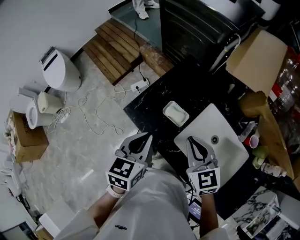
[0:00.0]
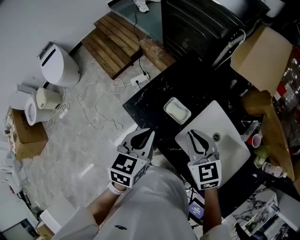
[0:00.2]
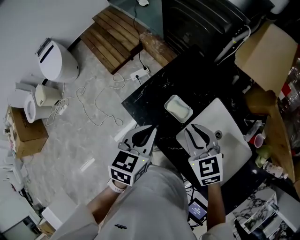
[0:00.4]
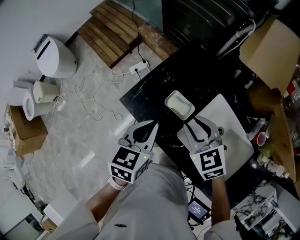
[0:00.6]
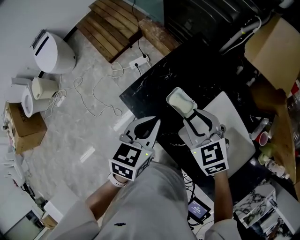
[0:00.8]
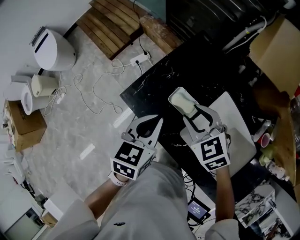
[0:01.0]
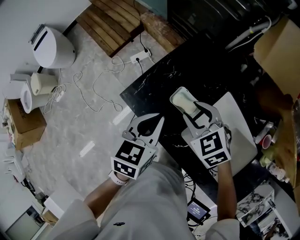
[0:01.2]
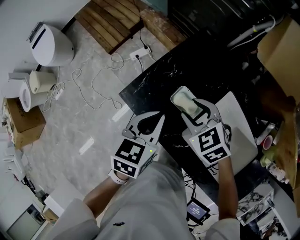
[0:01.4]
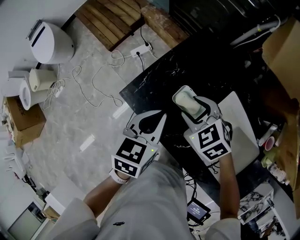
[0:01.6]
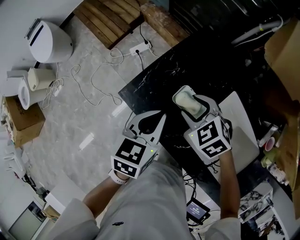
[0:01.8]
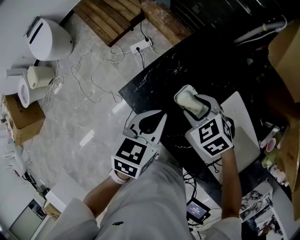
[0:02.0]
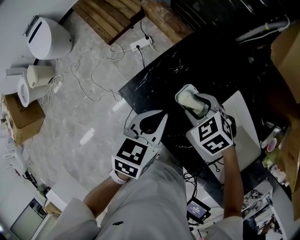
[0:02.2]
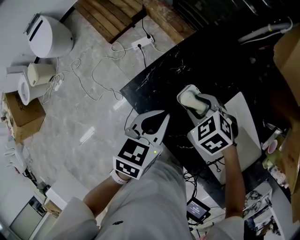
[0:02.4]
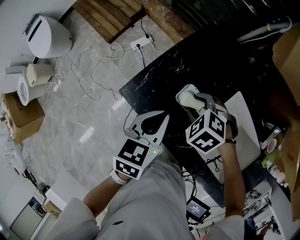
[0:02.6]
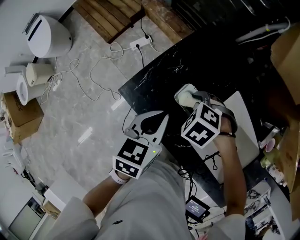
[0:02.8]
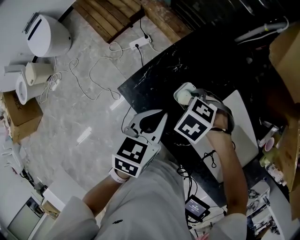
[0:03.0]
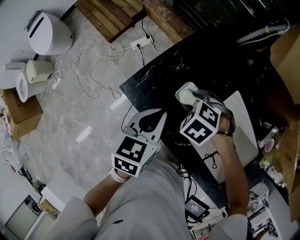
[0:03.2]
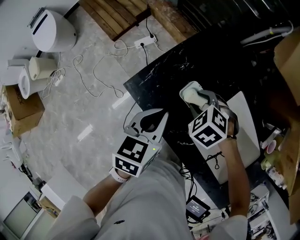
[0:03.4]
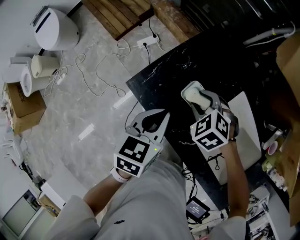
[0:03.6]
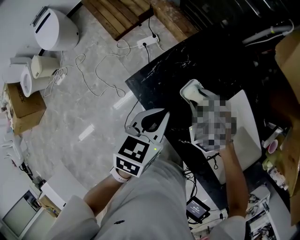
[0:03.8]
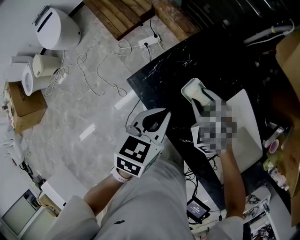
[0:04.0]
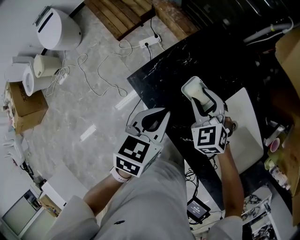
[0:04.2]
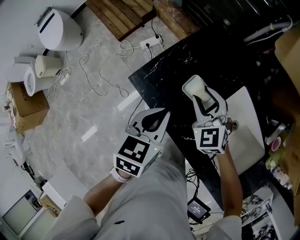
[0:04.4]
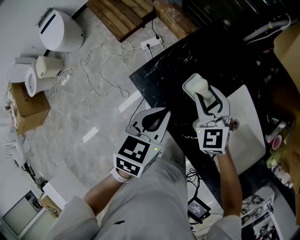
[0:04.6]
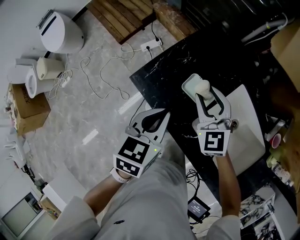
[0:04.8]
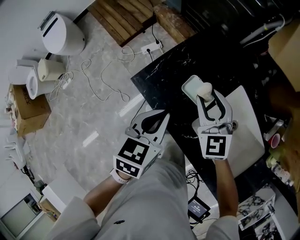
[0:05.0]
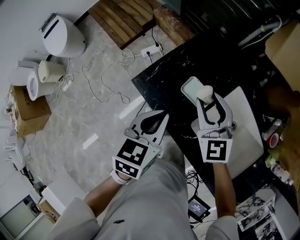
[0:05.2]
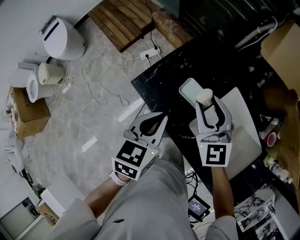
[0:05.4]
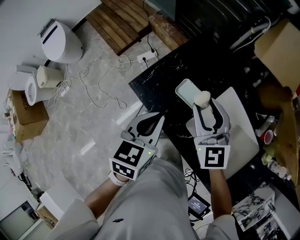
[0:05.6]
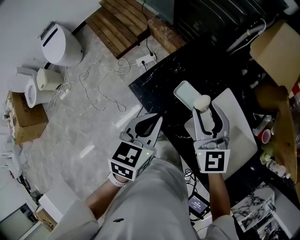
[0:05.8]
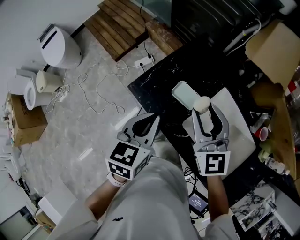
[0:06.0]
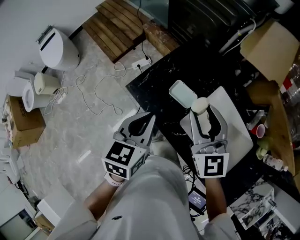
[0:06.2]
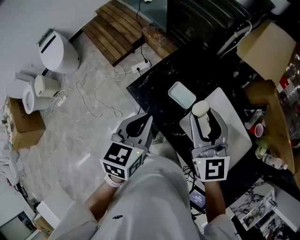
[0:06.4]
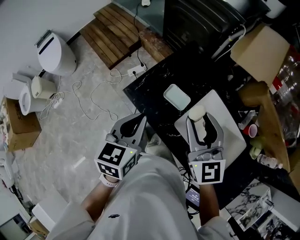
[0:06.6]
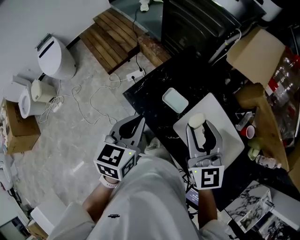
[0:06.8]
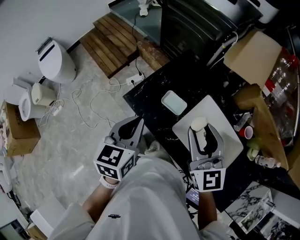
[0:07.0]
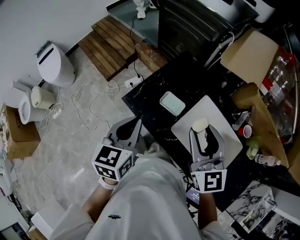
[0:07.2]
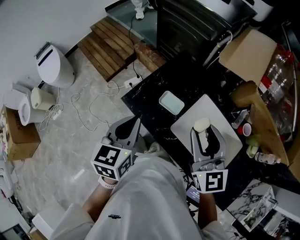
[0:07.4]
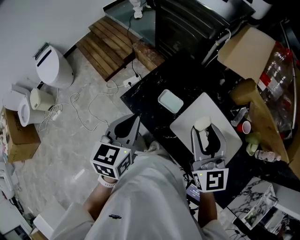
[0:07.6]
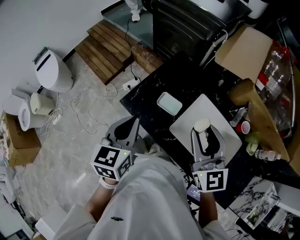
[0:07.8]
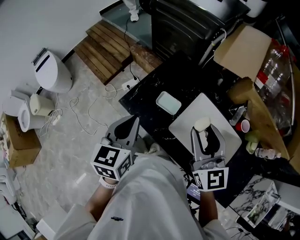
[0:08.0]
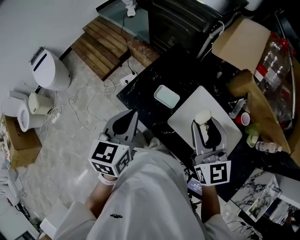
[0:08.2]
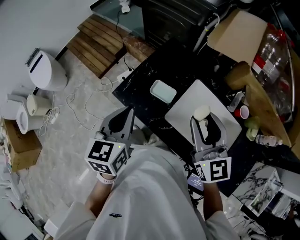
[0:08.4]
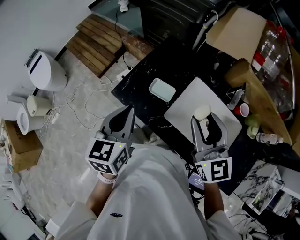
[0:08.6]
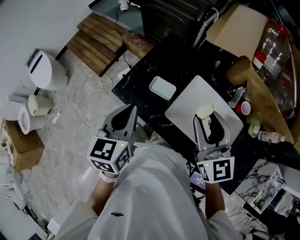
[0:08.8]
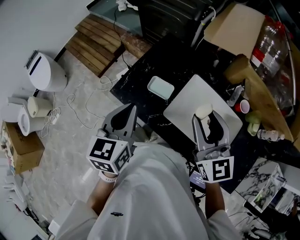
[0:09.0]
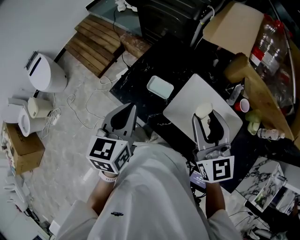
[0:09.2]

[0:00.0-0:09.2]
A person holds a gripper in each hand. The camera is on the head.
0:00.0 to 0:01.6: Both grippers move downward and forward, approximately 15 cm. The right gripper changes its angle by approximately 40 degrees, and opens its fingers.
0:01.6 to 0:03.0: The right gripper moves downward, roughly 5 cm, and tips its fingers downward by about 30 degrees.
0:03.0 to 0:04.6: The right gripper heads upward, covering some 10 cm, and tilts its fingers approximately 60 degrees upward.
0:04.6 to 0:06.2: The left gripper travels upward by roughly 10 cm. Meanwhile the right gripper is displaced upward by roughly 20 cm, and swivels some 30 degrees.
0:06.2 to 0:07.6: The left gripper shifts roughly 5 cm upward. The right gripper moves backward, upward and to the right, approximately 10 cm.
0:07.6 to 0:09.2: The grippers stay close to where they were, moving slightly.

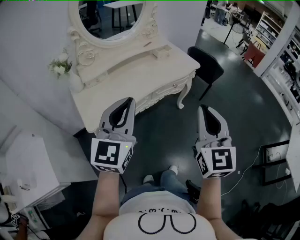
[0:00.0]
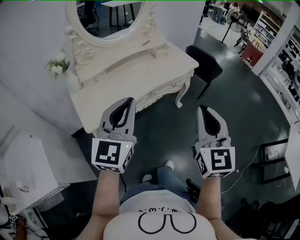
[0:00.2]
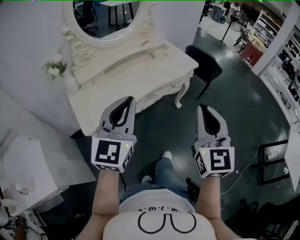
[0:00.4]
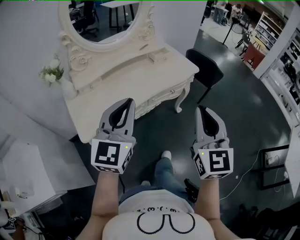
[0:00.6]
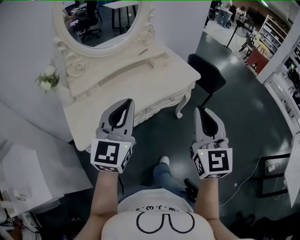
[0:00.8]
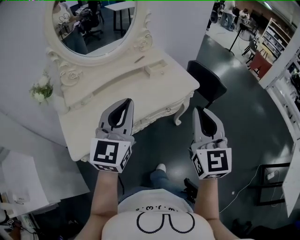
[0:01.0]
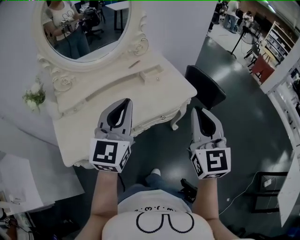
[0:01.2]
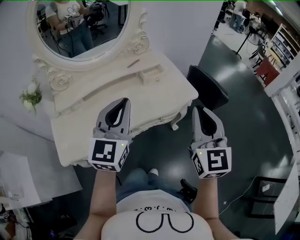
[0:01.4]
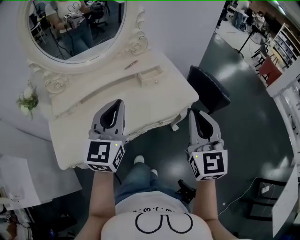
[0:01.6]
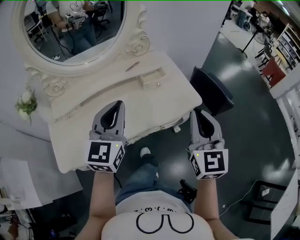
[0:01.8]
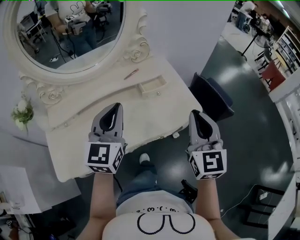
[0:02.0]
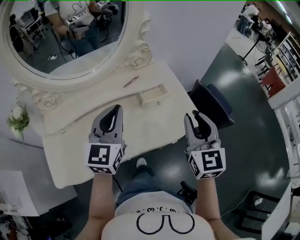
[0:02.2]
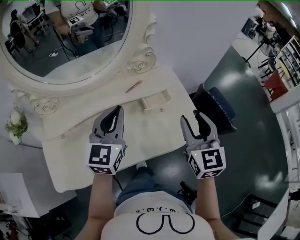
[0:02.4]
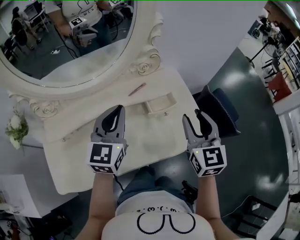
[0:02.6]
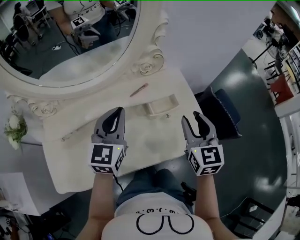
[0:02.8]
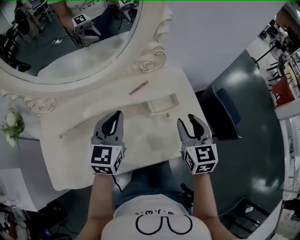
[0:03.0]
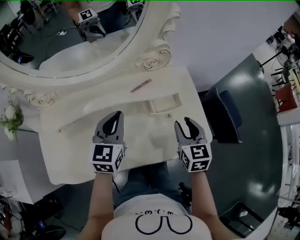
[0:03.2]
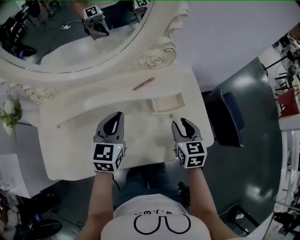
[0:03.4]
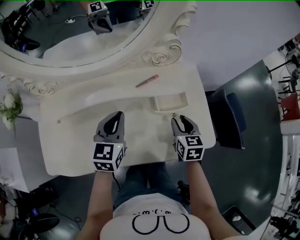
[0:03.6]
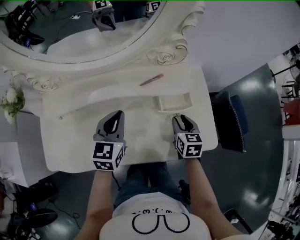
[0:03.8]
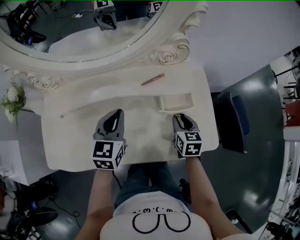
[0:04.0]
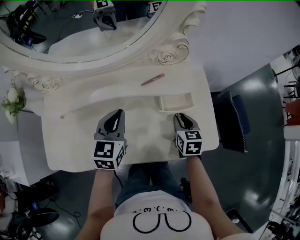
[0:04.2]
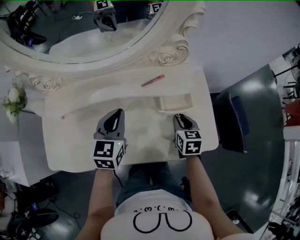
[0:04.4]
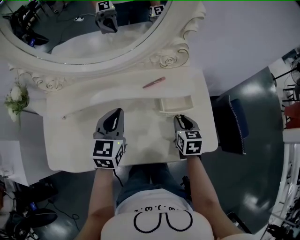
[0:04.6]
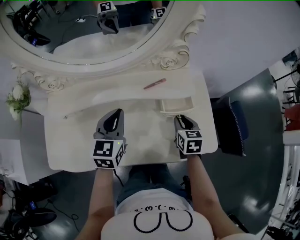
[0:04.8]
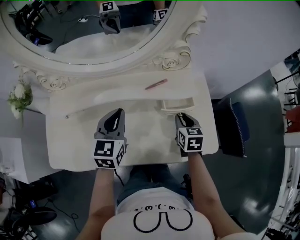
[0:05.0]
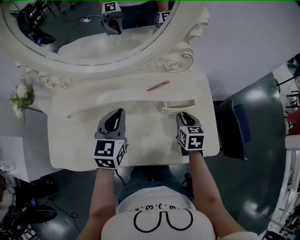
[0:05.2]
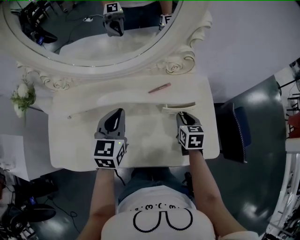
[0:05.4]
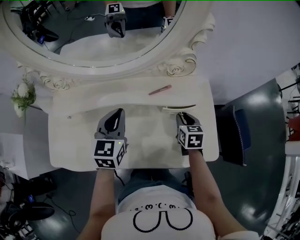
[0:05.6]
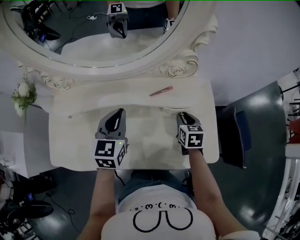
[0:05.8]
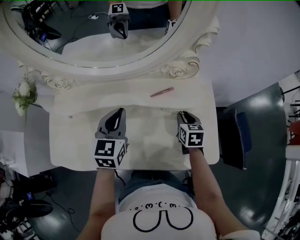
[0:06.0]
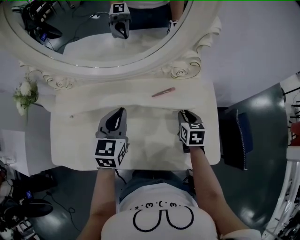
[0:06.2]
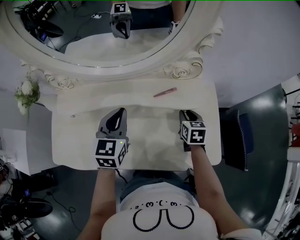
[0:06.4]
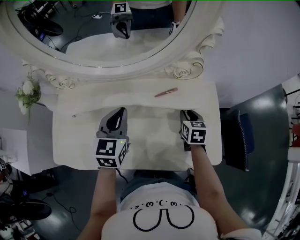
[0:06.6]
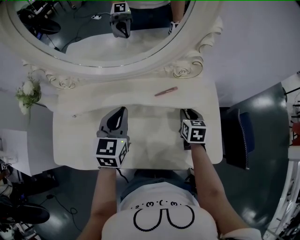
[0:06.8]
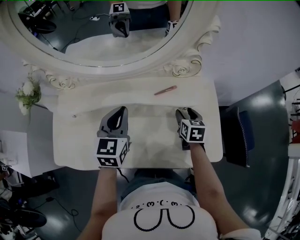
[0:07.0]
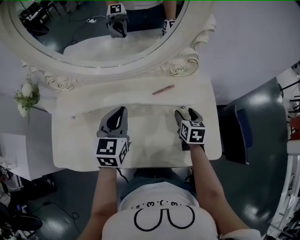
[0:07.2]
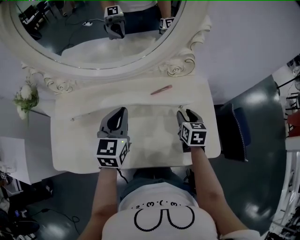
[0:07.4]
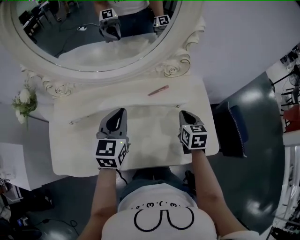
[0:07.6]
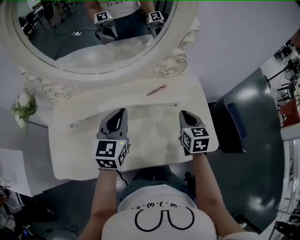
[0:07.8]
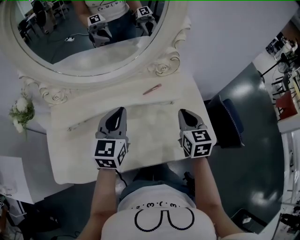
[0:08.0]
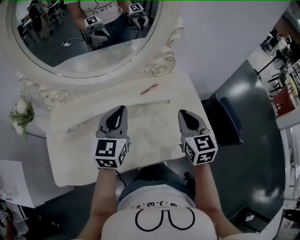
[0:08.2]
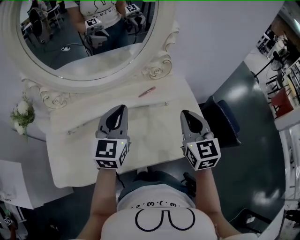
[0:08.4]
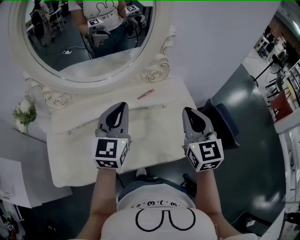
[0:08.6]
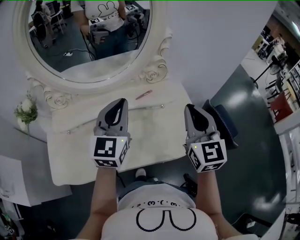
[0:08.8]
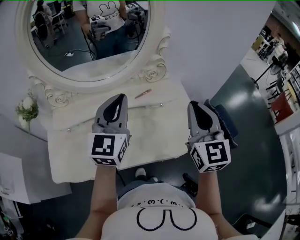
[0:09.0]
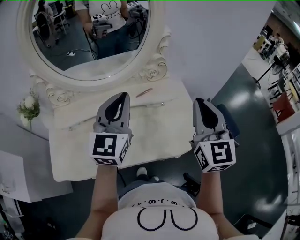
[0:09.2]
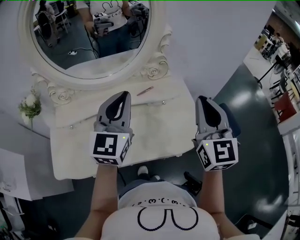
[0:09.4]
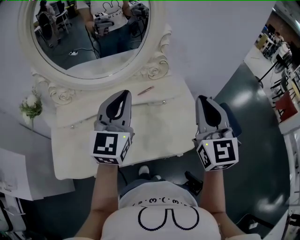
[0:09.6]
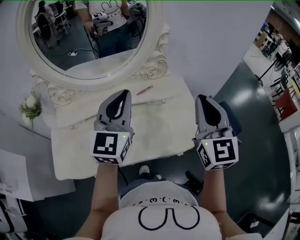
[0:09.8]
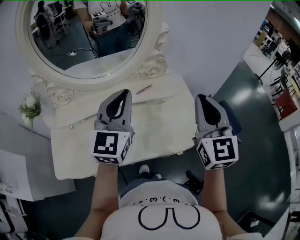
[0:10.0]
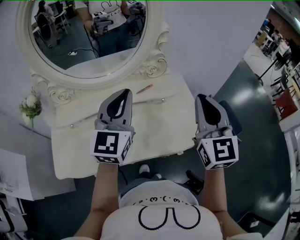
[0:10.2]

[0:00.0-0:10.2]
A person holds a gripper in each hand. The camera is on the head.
0:00.0 to 0:01.4: The two grippers go roughly 30 cm forward.
0:01.4 to 0:03.0: Both grippers travel together forward and downward, roughly 35 cm. The right gripper turns by about 30 degrees, and opens. The left gripper rotates some 20 degrees.
0:03.0 to 0:04.4: The right gripper shifts about 15 cm downward, and swivels roughly 20 degrees; the left gripper moves downward, roughly 5 cm.
0:04.4 to 0:05.8: The right gripper is displaced forward by approximately 5 cm.
0:05.8 to 0:07.2: The right gripper opens.
0:07.2 to 0:08.8: The right gripper is displaced upward and backward by some 35 cm, tips its fingers upward by roughly 40 degrees, and closes its fingers. Meanwhile the left gripper travels upward by approximately 15 cm, and changes its angle by approximately 30 degrees.
0:08.8 to 0:10.2: The right gripper moves roughly 5 cm. Meanwhile the left gripper changes place by some 5 cm.

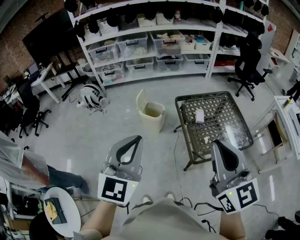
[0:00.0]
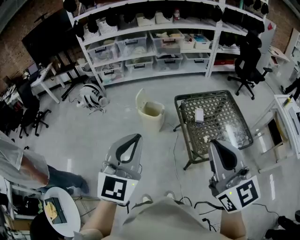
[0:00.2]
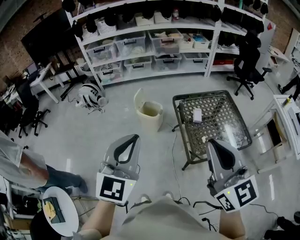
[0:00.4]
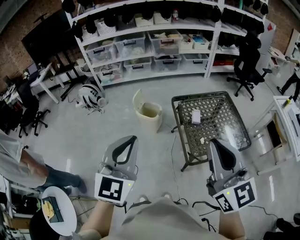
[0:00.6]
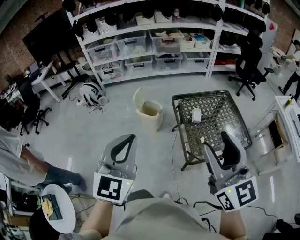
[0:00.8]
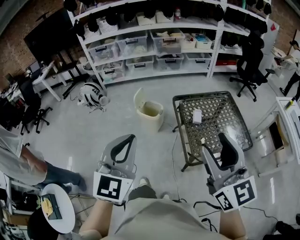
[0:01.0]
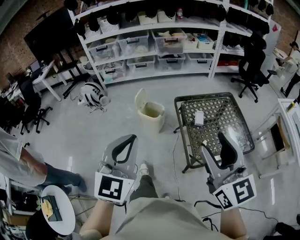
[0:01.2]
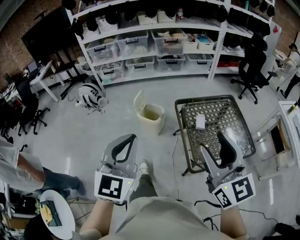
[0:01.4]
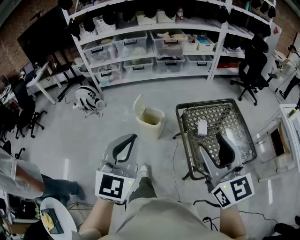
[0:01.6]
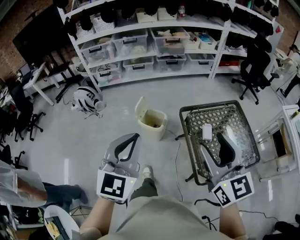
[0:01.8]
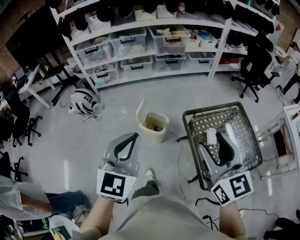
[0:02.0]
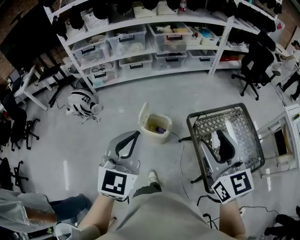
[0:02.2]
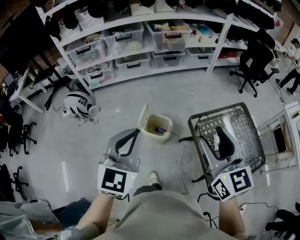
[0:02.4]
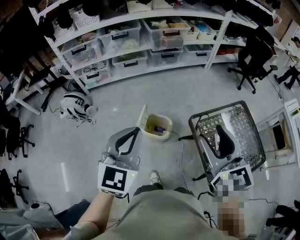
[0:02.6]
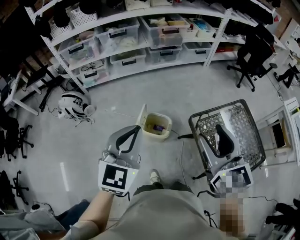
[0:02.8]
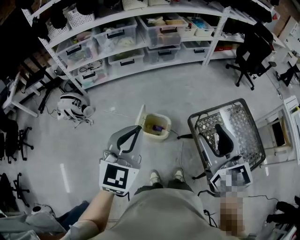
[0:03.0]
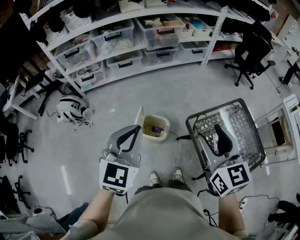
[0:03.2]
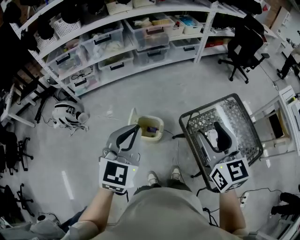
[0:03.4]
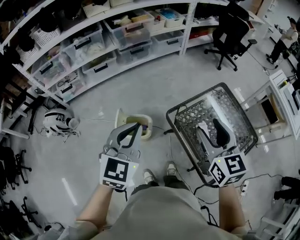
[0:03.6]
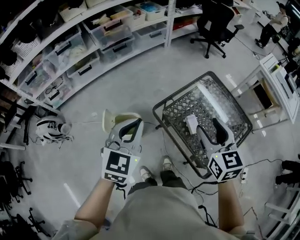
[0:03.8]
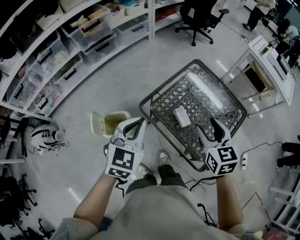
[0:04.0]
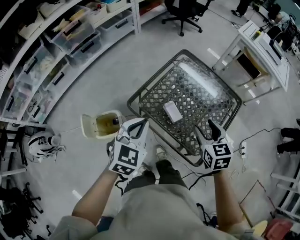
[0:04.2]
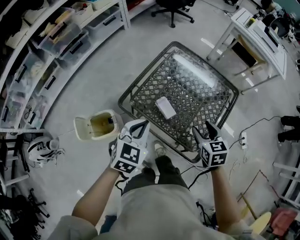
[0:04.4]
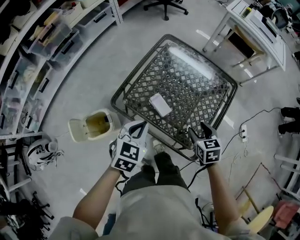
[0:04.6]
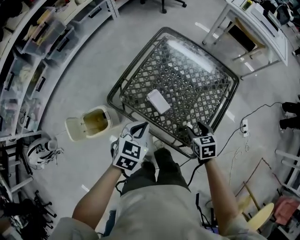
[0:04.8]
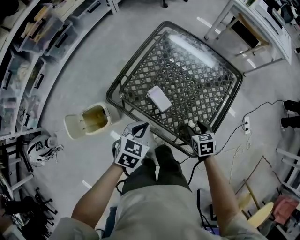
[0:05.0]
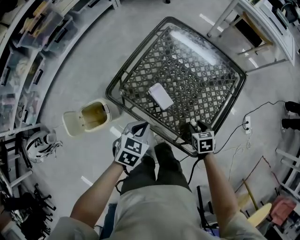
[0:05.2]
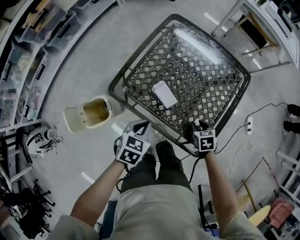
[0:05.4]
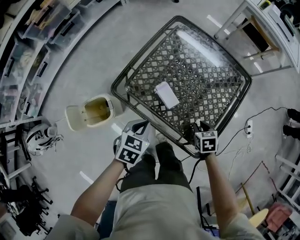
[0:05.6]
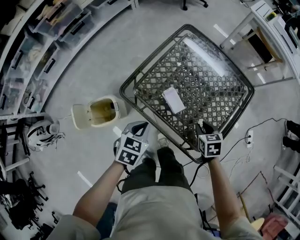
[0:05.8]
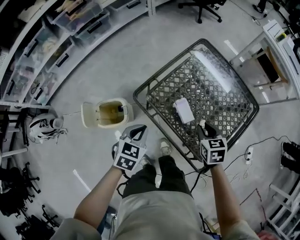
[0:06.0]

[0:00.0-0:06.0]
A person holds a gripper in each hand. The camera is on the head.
0:00.0 to 0:01.6: The grippers both shift forward by about 15 cm. The right gripper opens.
0:01.6 to 0:03.0: The grippers both shift forward and to the left by approximately 35 cm.
0:03.0 to 0:04.4: The left gripper changes place by about 40 cm, and swivels approximately 50 degrees, while the right gripper moves approximately 50 cm, and points its fingers approximately 30 degrees further downward.
0:04.4 to 0:06.0: Both grippers travel together downward and to the left, about 10 cm. The right gripper closes its fingers.
